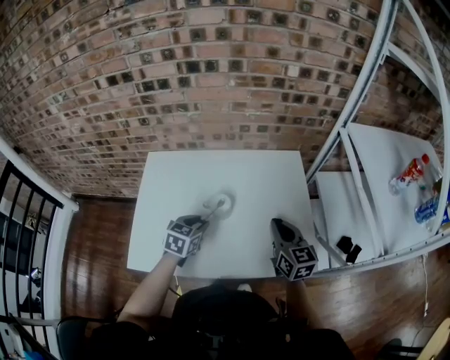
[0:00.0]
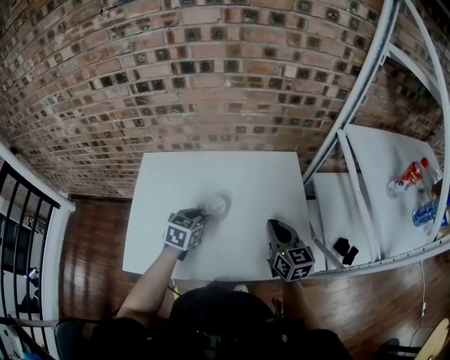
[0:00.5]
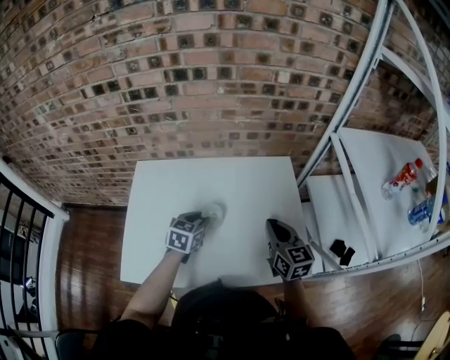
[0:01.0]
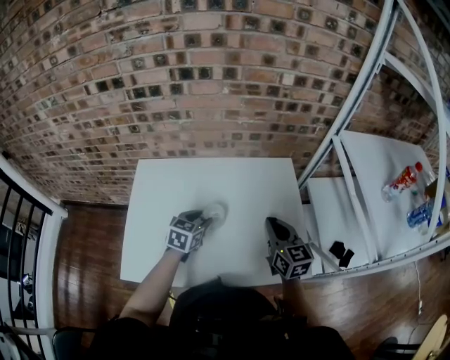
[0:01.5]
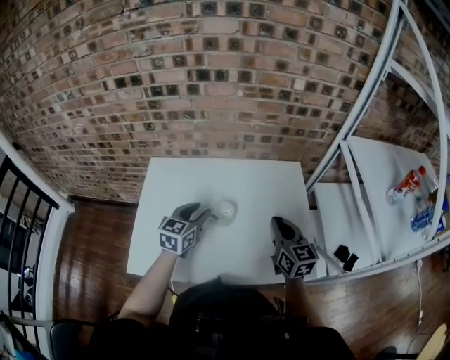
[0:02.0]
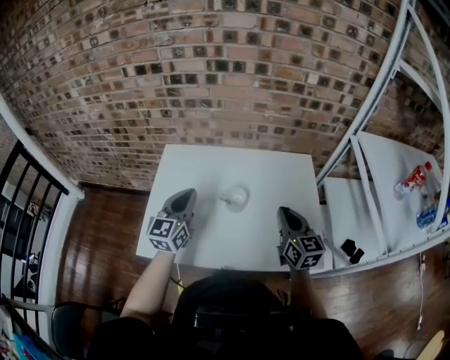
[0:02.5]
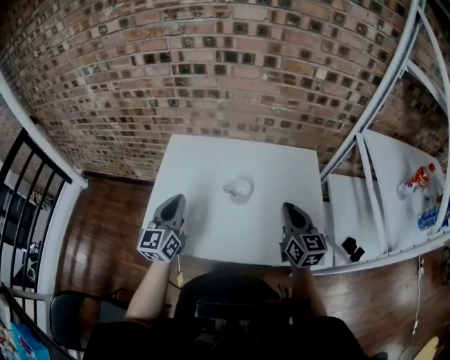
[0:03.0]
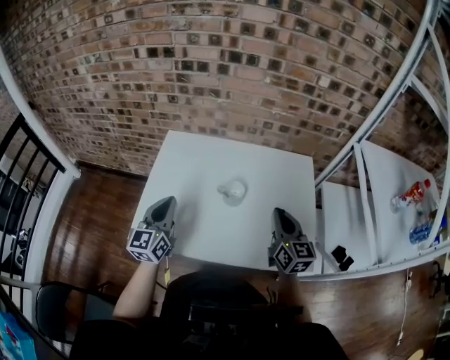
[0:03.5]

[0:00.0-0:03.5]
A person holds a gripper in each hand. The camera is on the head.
0:00.0 to 0:02.0: The left gripper travels upward by roughly 5 cm.
0:02.0 to 0:03.5: The left gripper shifts roughly 20 cm to the left and backward, turns by about 30 degrees, and closes up.

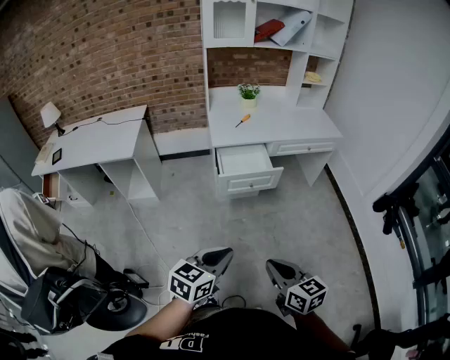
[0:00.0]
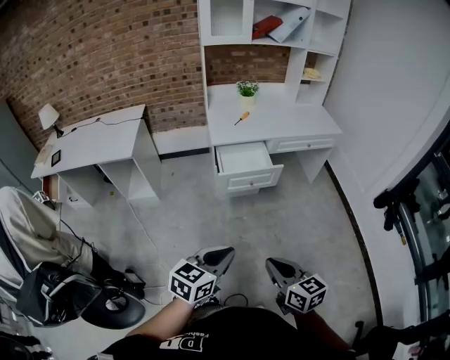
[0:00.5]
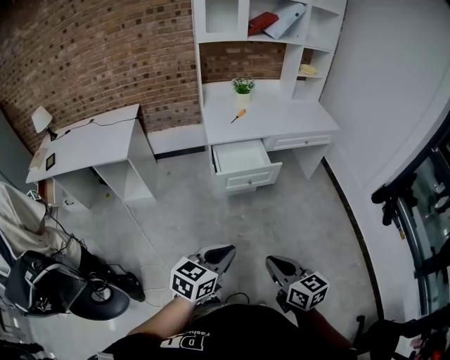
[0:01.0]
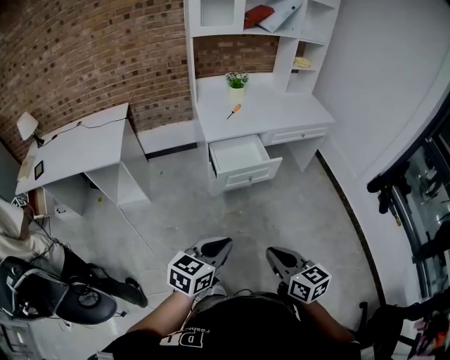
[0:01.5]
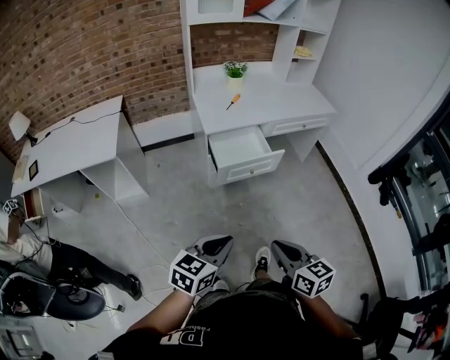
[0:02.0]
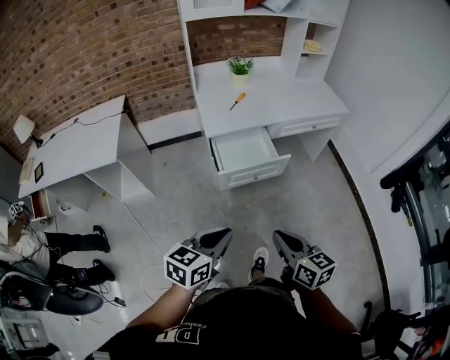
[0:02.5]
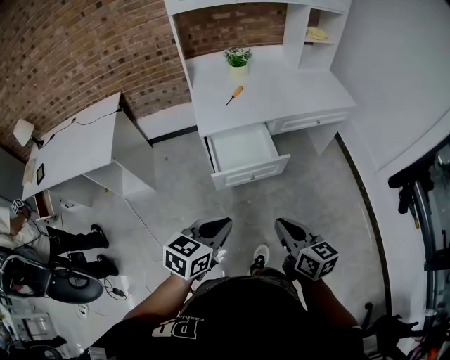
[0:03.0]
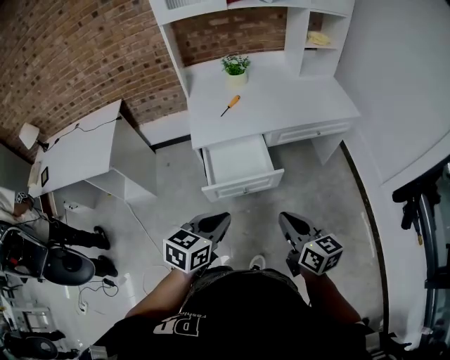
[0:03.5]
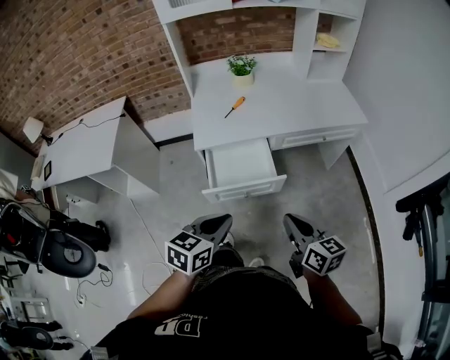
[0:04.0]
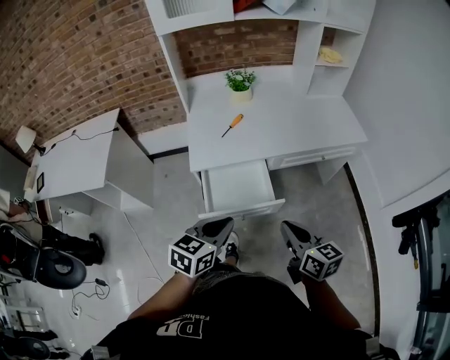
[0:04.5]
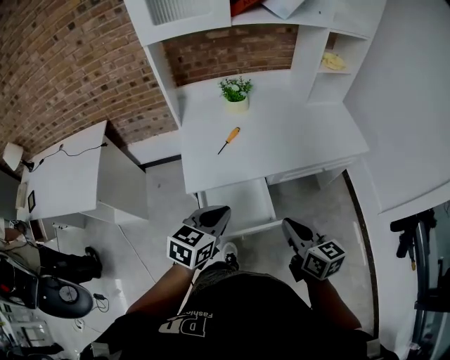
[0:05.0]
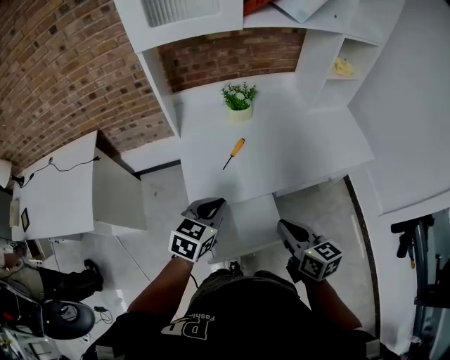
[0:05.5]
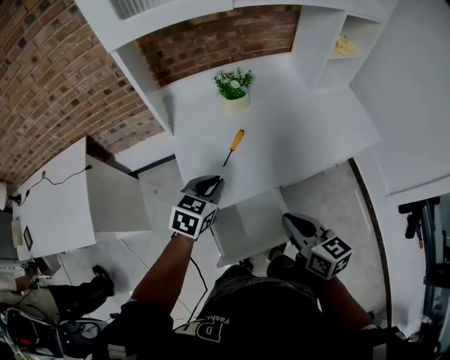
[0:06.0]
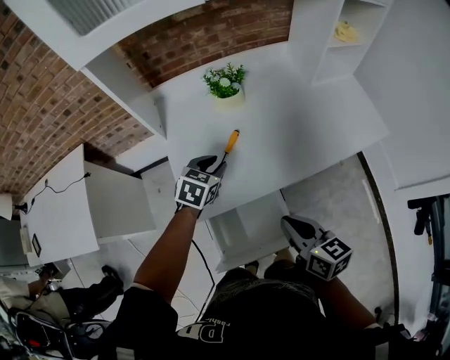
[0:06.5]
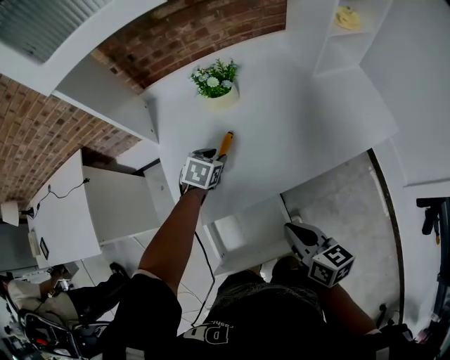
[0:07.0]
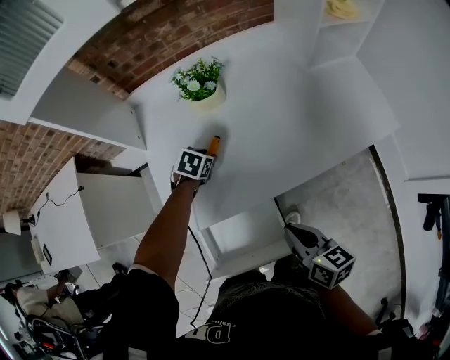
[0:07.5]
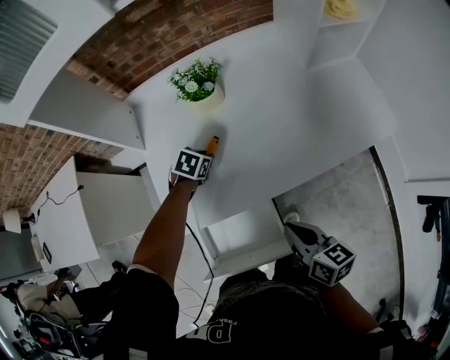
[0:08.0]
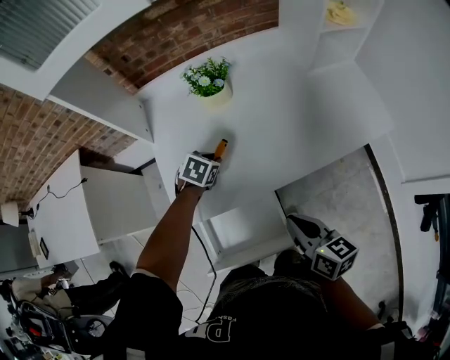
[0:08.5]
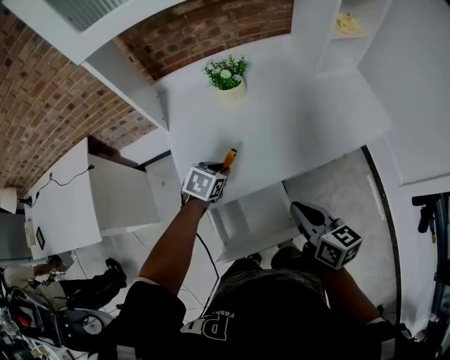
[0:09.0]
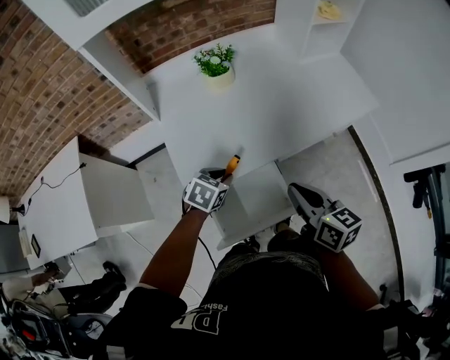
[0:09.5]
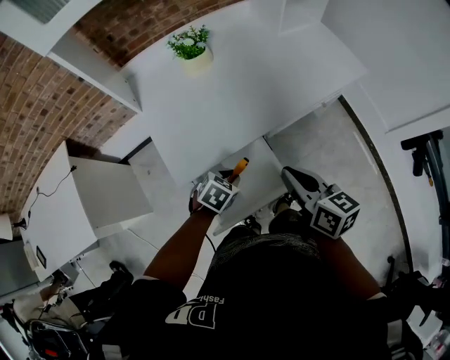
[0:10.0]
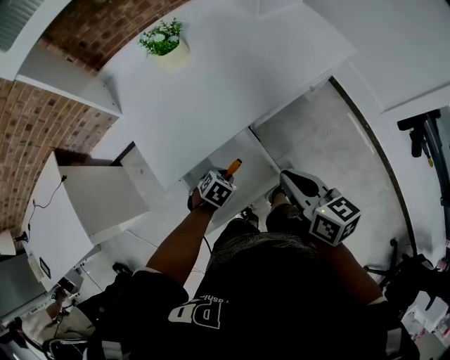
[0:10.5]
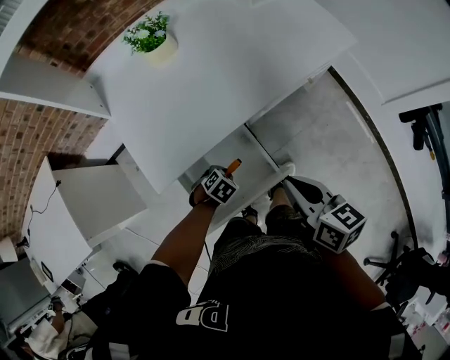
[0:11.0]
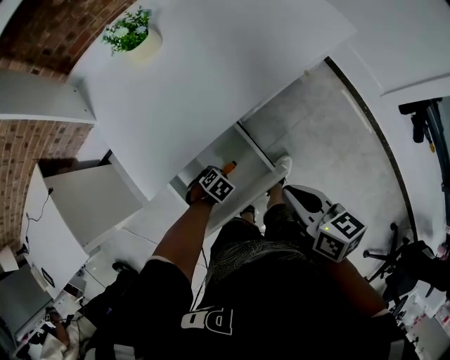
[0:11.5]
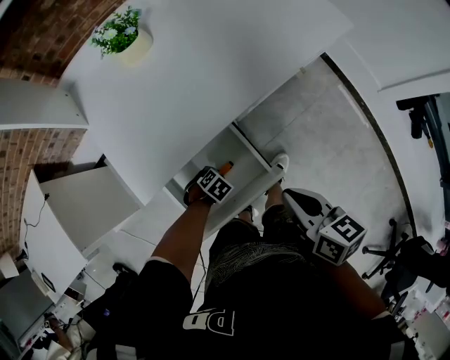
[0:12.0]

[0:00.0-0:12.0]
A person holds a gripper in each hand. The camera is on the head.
0:00.0 to 0:02.0: The left gripper moves to the left and forward, approximately 10 cm, while the right gripper is displaced forward and to the left by some 10 cm.
0:02.0 to 0:04.0: Both grippers move forward and to the right, approximately 35 cm.
0:04.0 to 0:06.0: The right gripper travels forward and to the left by approximately 30 cm; the left gripper shifts about 40 cm forward.
0:06.0 to 0:08.0: The left gripper travels downward and forward by some 25 cm, and tilts its fingers approximately 30 degrees downward. The right gripper shifts about 15 cm to the right, downward and forward.
0:08.0 to 0:10.0: The right gripper moves backward and upward, some 10 cm; the left gripper heads backward, covering about 30 cm, and swivels roughly 20 degrees.
0:10.0 to 0:12.0: The left gripper shifts some 25 cm downward, and changes its angle by approximately 30 degrees. Meanwhile the right gripper goes about 10 cm downward.

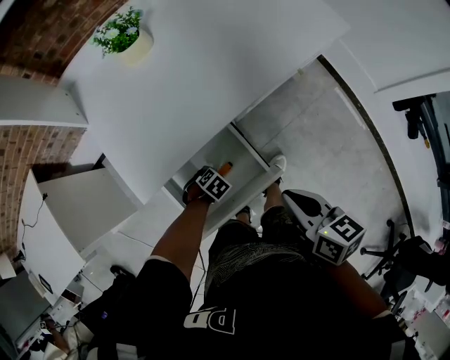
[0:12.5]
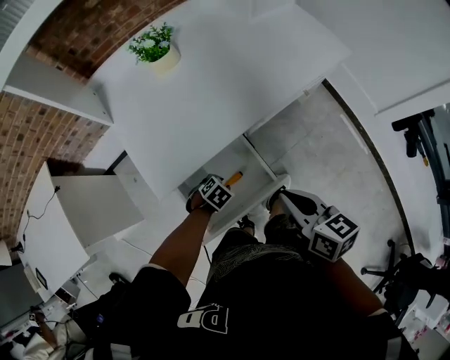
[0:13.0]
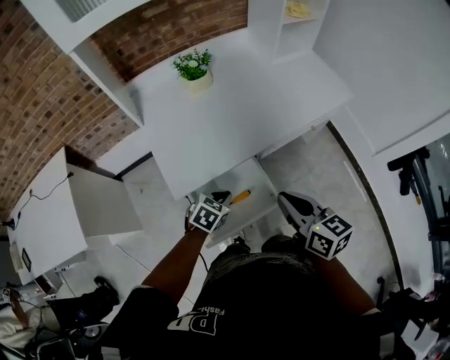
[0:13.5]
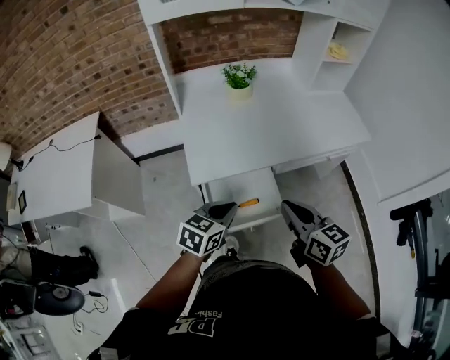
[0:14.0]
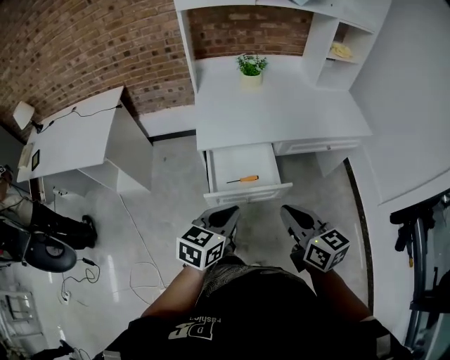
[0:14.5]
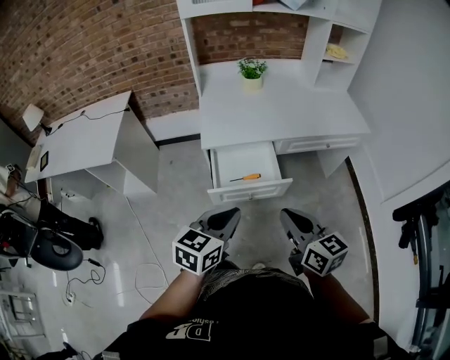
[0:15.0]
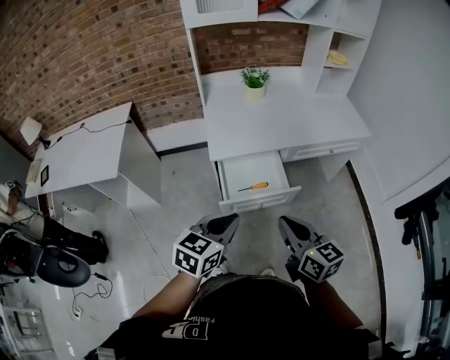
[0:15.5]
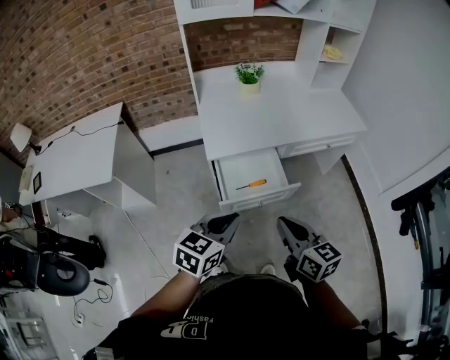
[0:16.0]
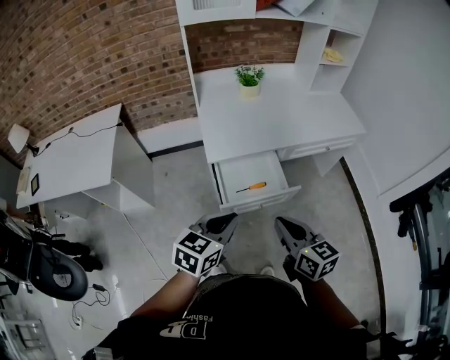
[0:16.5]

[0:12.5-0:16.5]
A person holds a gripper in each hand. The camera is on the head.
0:12.5 to 0:14.5: The left gripper shifts about 40 cm upward, tilts its fingers about 50 degrees upward, and closes. The right gripper changes place by some 25 cm, and swivels approximately 40 degrees.
0:14.5 to 0:16.5: Both grippers travel together to the left, about 10 cm.

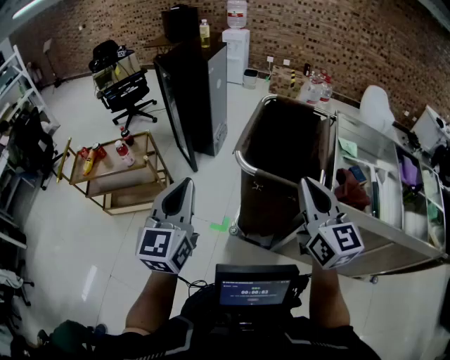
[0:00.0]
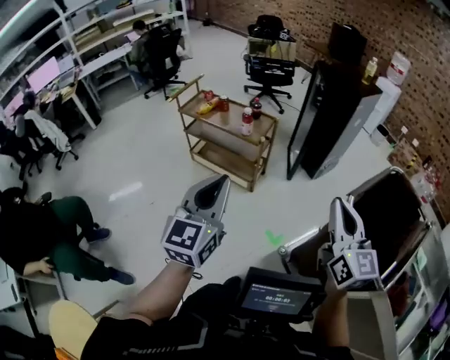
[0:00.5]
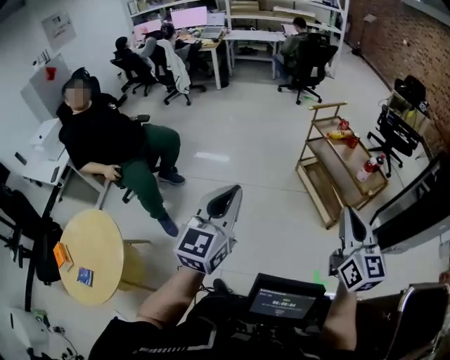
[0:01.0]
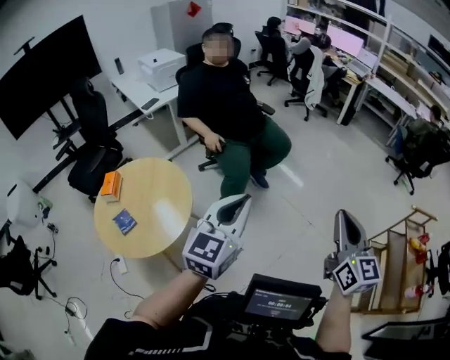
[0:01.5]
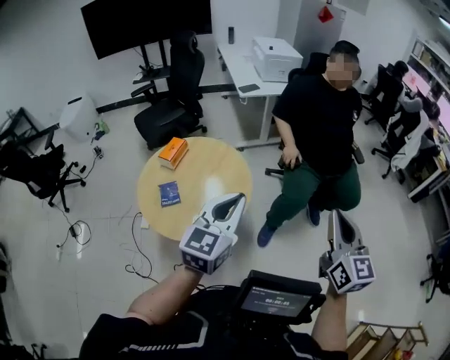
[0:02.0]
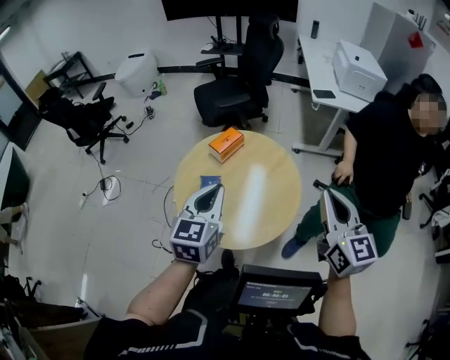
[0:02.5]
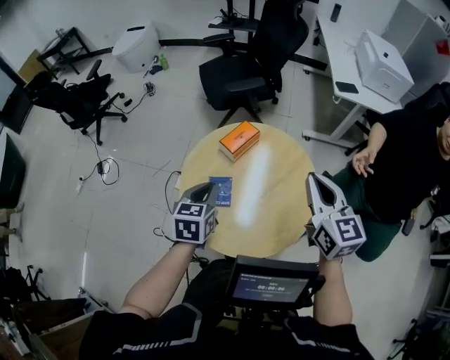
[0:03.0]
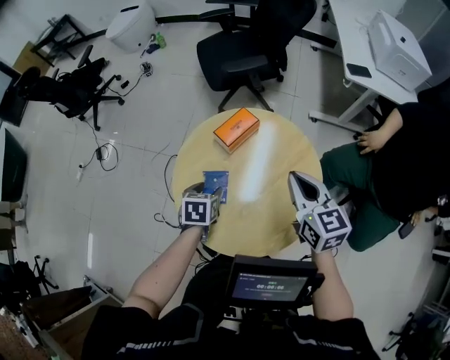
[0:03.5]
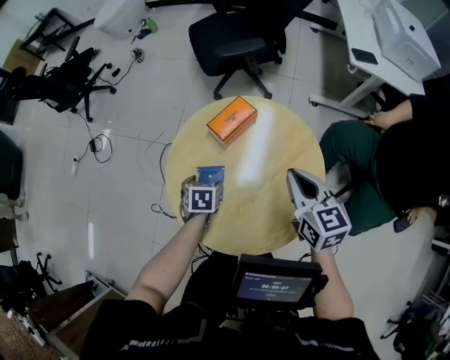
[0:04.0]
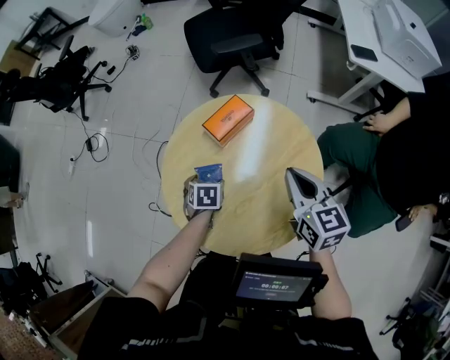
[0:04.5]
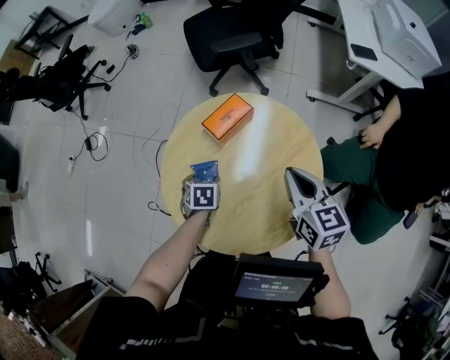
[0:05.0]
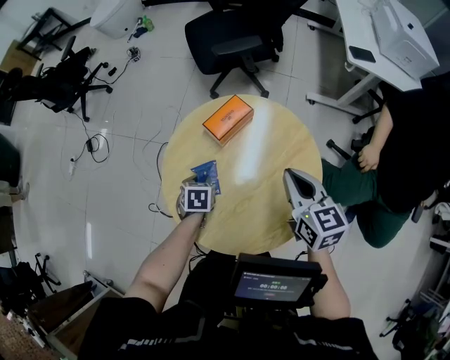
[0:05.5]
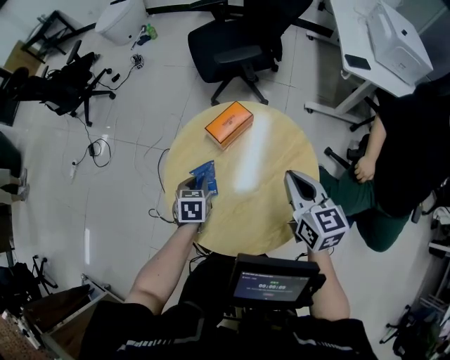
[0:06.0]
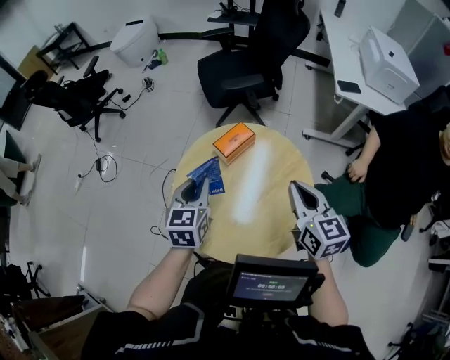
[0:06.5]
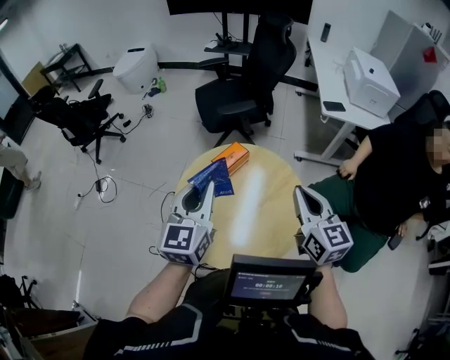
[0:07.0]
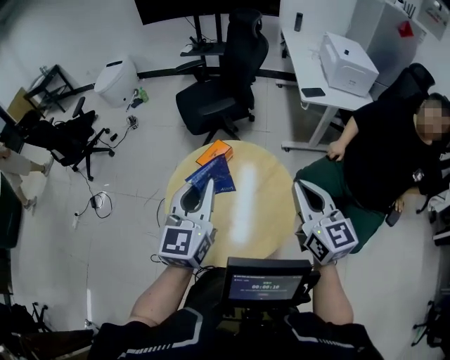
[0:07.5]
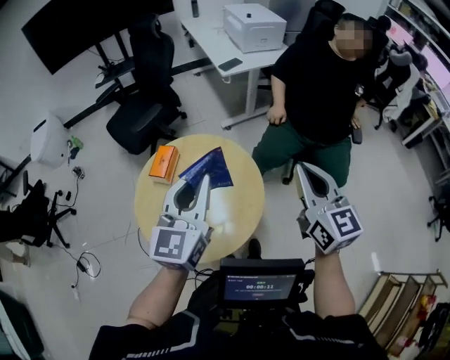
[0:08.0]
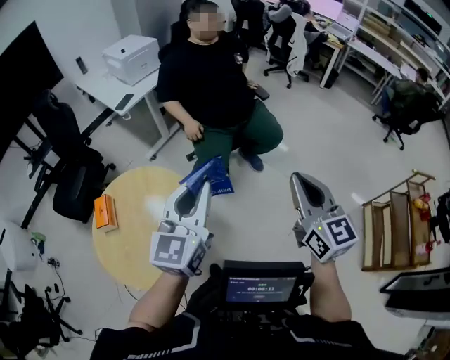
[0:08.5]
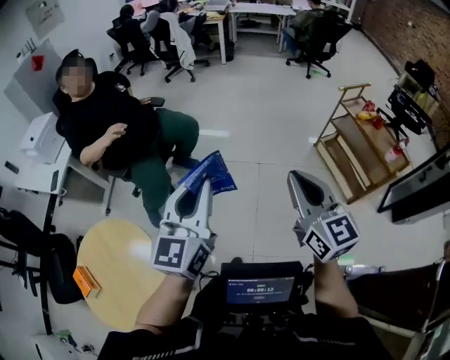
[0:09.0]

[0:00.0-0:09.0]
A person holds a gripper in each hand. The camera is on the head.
0:00.0 to 0:02.0: The two grippers travel together, roughly 1.5 m. The left gripper changes its angle by roughly 130 degrees; the right gripper changes its angle by about 140 degrees.
0:02.0 to 0:04.5: The two grippers travel together, roughly 70 cm. The left gripper angles its fingers downward, by about 60 degrees, and opens. Meanwhile the right gripper turns by some 50 degrees.
0:04.5 to 0:07.0: The right gripper shifts some 30 cm upward and backward, and changes its angle by approximately 20 degrees, while the left gripper shifts roughly 40 cm upward, tips its fingers upward by about 60 degrees, and closes.
0:07.0 to 0:09.0: The two grippers travel together, approximately 80 cm. The right gripper changes its angle by approximately 90 degrees. Meanwhile the left gripper changes its angle by approximately 100 degrees.
